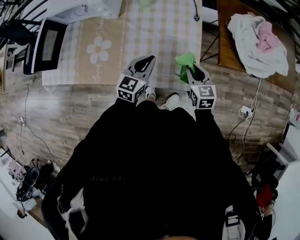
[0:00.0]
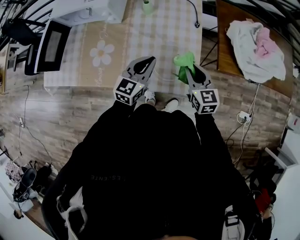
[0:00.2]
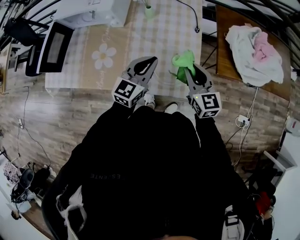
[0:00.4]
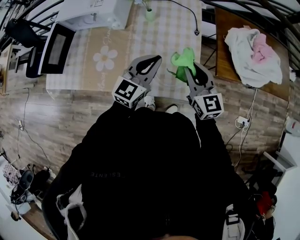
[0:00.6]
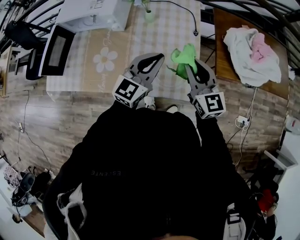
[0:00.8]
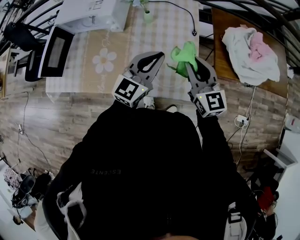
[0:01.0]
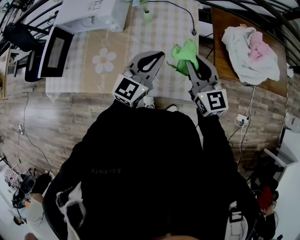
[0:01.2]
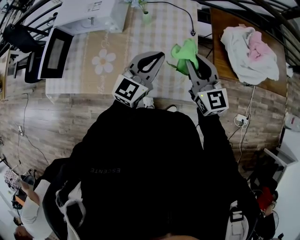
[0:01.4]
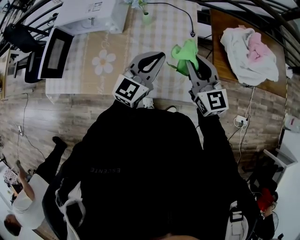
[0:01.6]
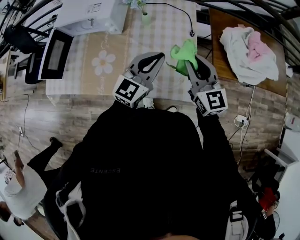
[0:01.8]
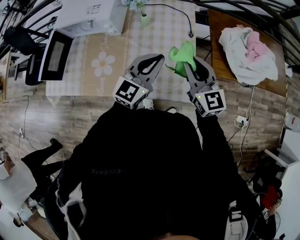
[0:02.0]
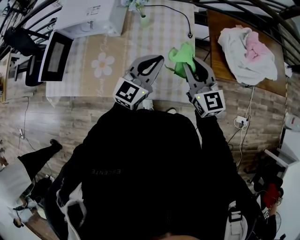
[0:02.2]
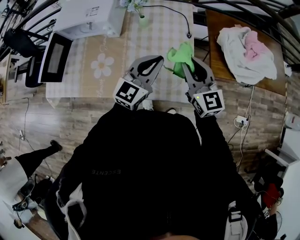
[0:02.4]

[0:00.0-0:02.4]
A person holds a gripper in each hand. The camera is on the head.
0:00.0 to 0:01.2: The grippers both shift upward by some 20 cm. The left gripper swivels roughly 20 degrees. The right gripper turns by some 30 degrees.
0:01.2 to 0:02.4: The grippers stay close to where they were, moving slightly.

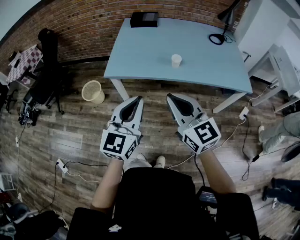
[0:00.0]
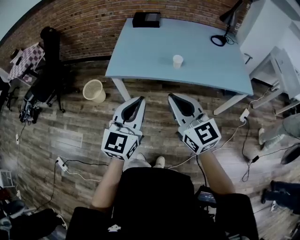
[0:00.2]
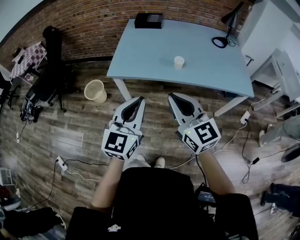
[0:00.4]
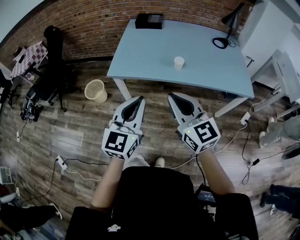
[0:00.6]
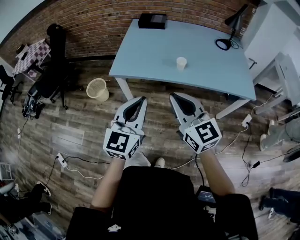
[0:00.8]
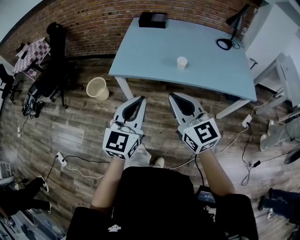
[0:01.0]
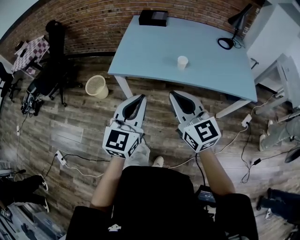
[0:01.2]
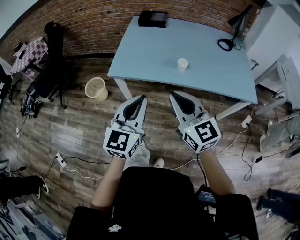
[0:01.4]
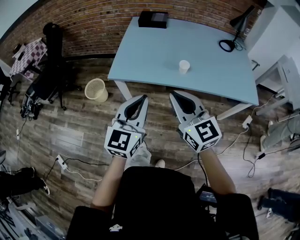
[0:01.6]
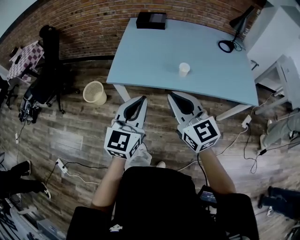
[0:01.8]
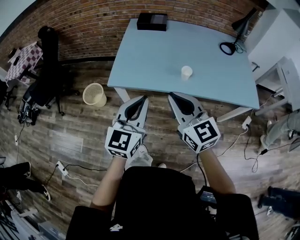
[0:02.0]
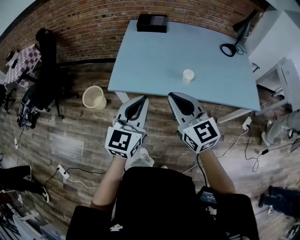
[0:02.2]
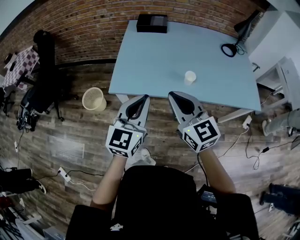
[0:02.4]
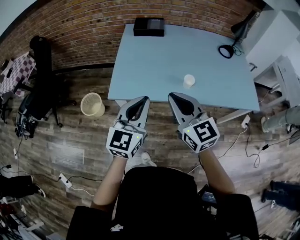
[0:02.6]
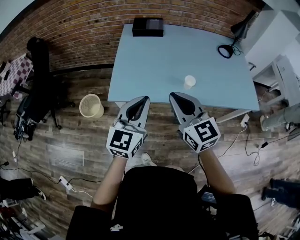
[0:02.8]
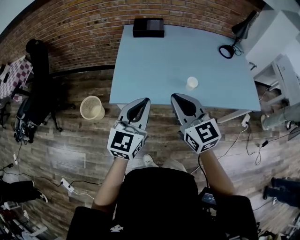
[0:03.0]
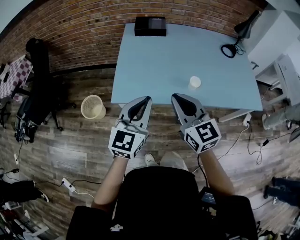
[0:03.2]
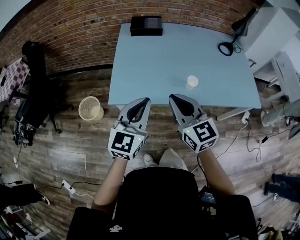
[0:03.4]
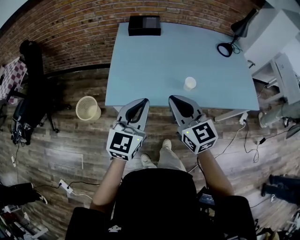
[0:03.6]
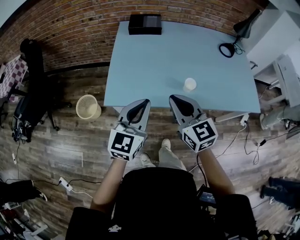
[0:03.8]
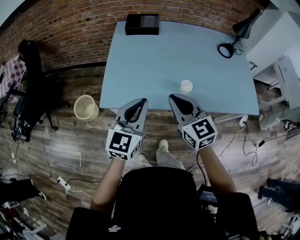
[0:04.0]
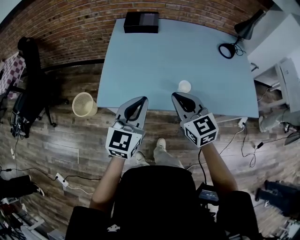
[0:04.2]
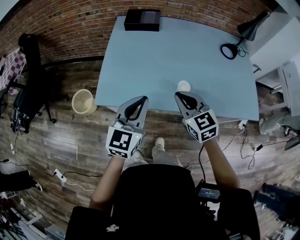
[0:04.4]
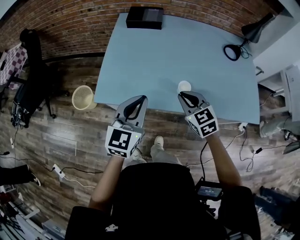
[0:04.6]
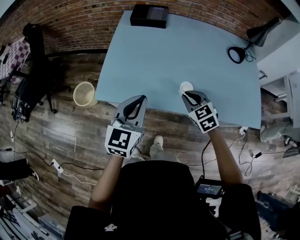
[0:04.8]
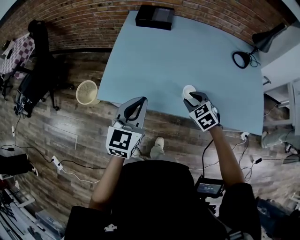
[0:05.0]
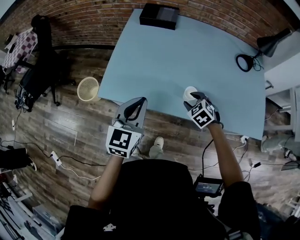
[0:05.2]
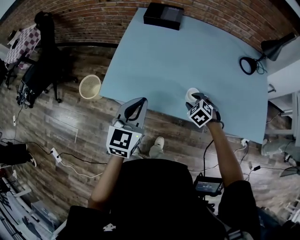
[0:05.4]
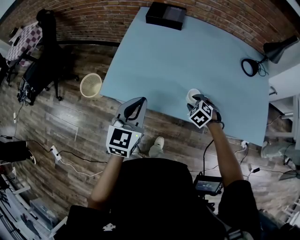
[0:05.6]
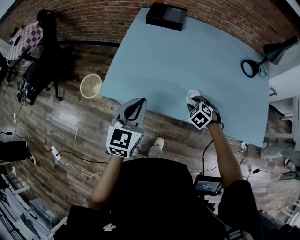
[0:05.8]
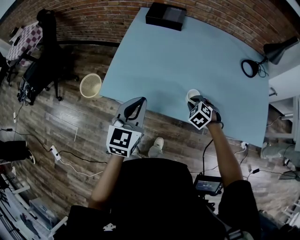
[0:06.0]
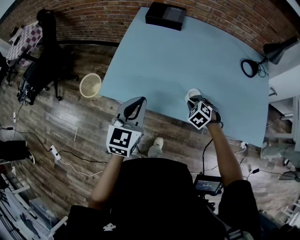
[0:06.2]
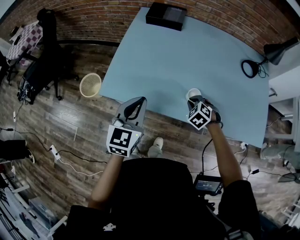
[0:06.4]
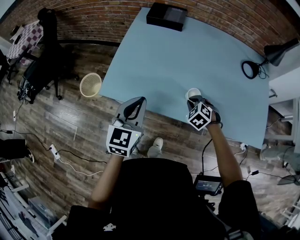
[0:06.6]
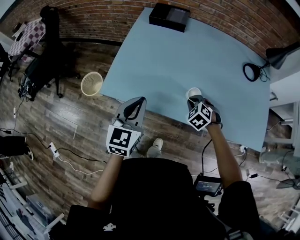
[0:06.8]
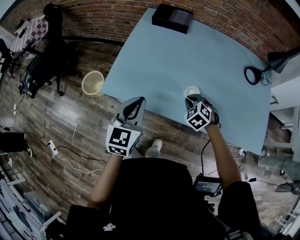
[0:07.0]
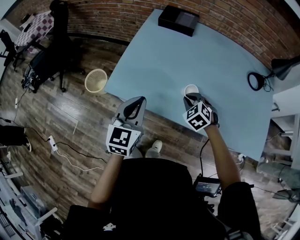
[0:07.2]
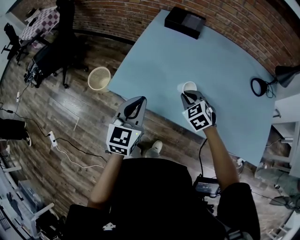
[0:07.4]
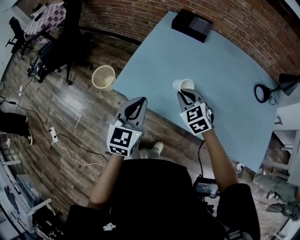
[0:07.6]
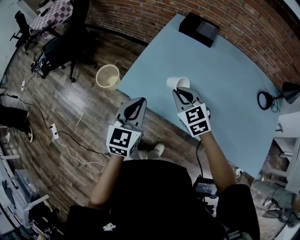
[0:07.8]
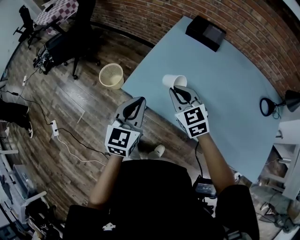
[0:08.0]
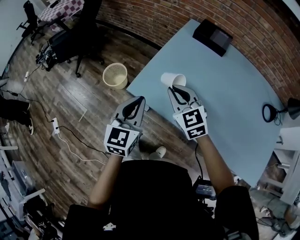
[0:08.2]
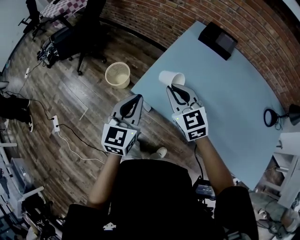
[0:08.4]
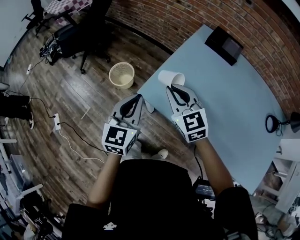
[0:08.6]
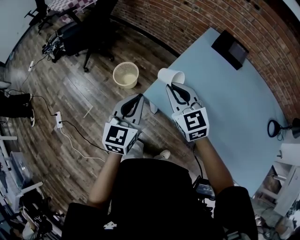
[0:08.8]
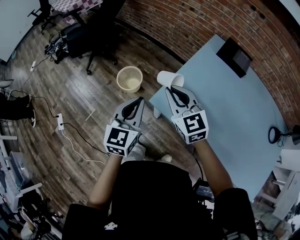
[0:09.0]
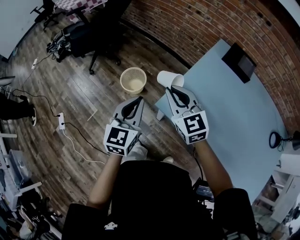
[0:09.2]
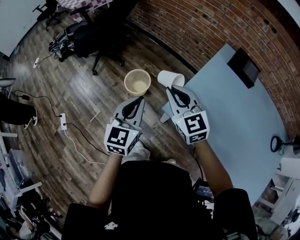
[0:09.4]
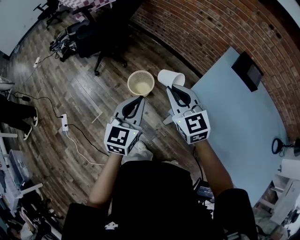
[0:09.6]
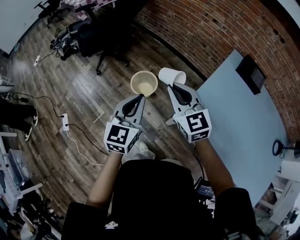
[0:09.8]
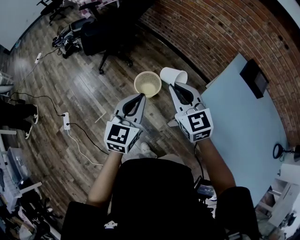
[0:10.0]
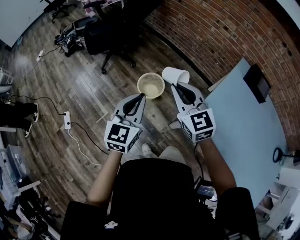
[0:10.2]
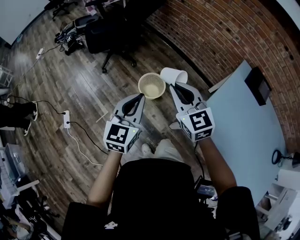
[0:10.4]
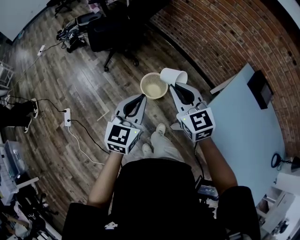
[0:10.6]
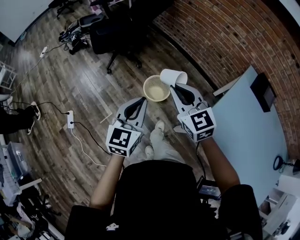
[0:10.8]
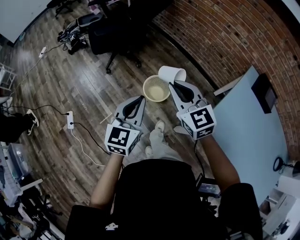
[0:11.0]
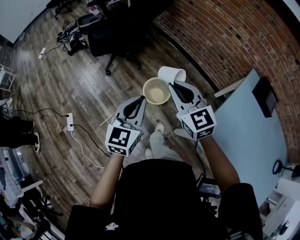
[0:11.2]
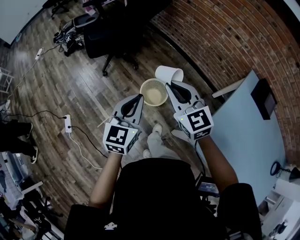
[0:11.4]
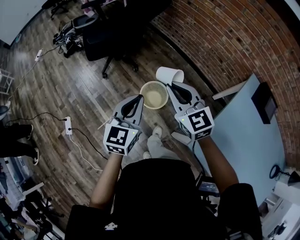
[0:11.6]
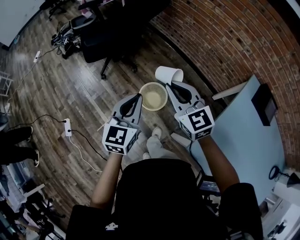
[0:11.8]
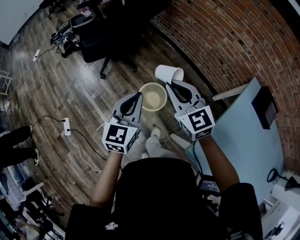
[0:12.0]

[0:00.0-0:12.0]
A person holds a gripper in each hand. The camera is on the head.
0:00.0 to 0:01.6: Both grippers travel together forward, about 5 cm.
0:01.6 to 0:03.0: Both grippers move forward and to the left, some 15 cm.
0:03.0 to 0:04.4: The right gripper travels to the right, forward and downward by roughly 15 cm. Meanwhile the left gripper shifts roughly 10 cm to the right and forward.
0:04.4 to 0:06.0: The right gripper goes some 20 cm downward, tilts its fingers about 40 degrees downward, and opens and closes again. Meanwhile the left gripper moves about 5 cm.
0:06.0 to 0:07.6: The right gripper is displaced to the left and upward by roughly 20 cm, and rotates roughly 30 degrees.
0:07.6 to 0:09.0: Both grippers move to the left and forward, roughly 25 cm. The right gripper turns by about 30 degrees.
0:09.0 to 0:10.4: The two grippers go roughly 25 cm to the left and forward.
0:10.4 to 0:12.0: The two grippers go approximately 20 cm forward.

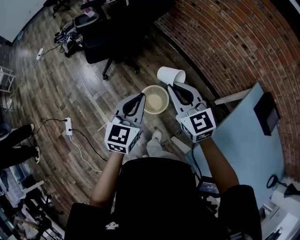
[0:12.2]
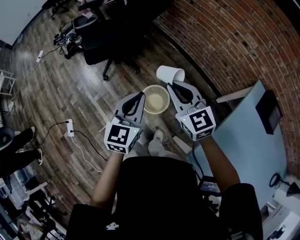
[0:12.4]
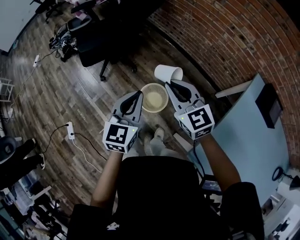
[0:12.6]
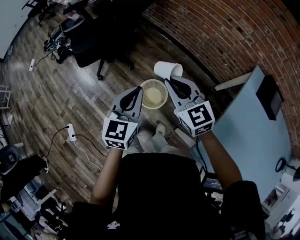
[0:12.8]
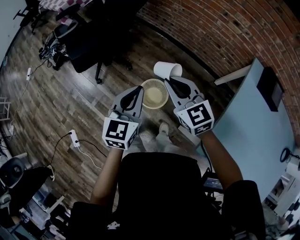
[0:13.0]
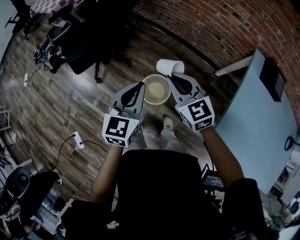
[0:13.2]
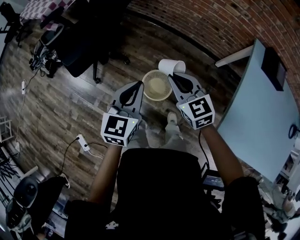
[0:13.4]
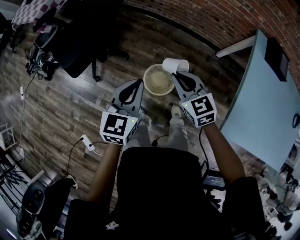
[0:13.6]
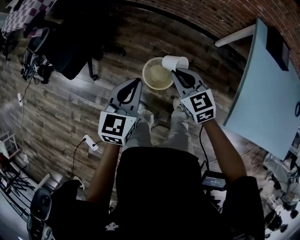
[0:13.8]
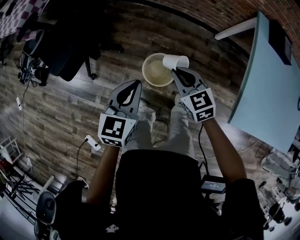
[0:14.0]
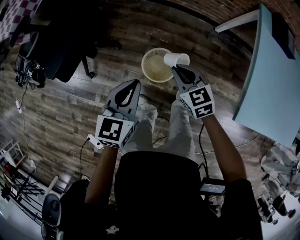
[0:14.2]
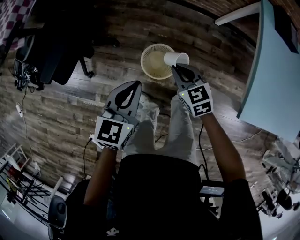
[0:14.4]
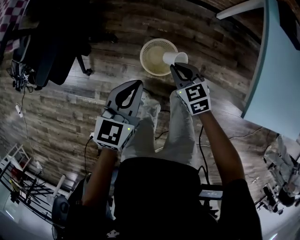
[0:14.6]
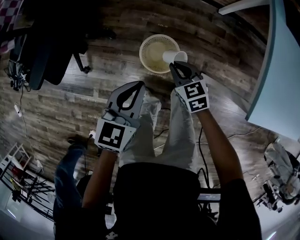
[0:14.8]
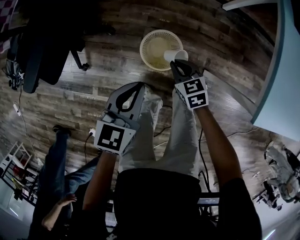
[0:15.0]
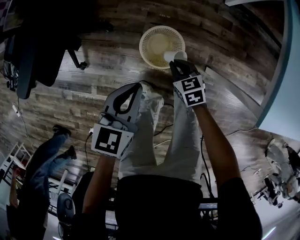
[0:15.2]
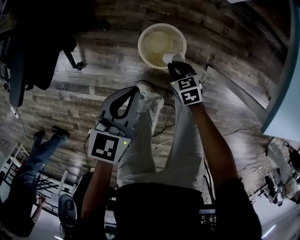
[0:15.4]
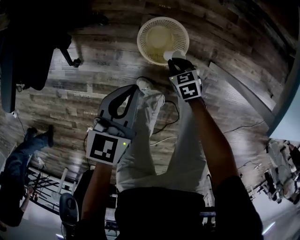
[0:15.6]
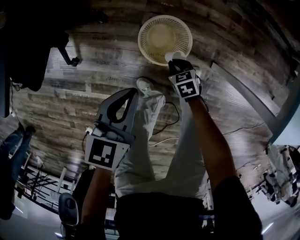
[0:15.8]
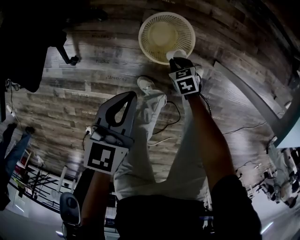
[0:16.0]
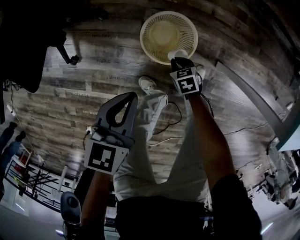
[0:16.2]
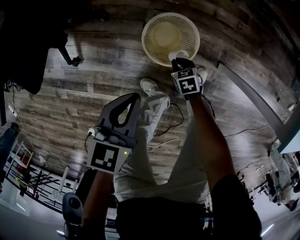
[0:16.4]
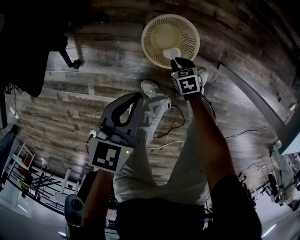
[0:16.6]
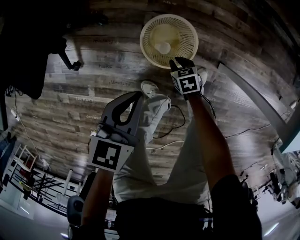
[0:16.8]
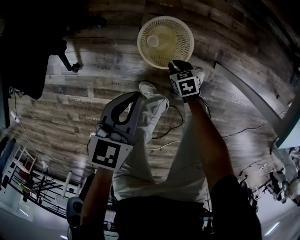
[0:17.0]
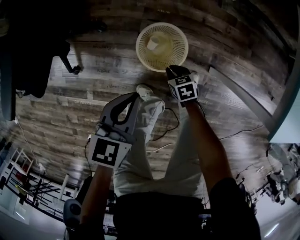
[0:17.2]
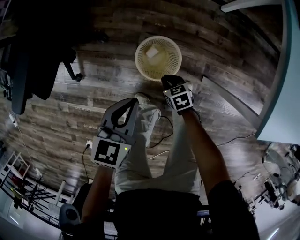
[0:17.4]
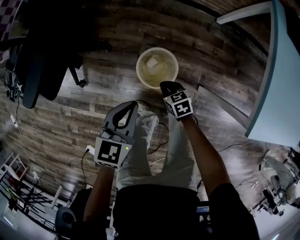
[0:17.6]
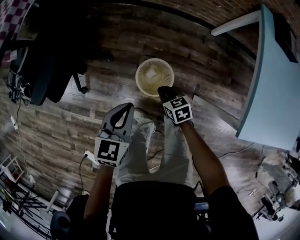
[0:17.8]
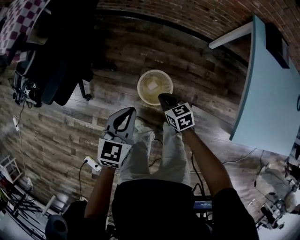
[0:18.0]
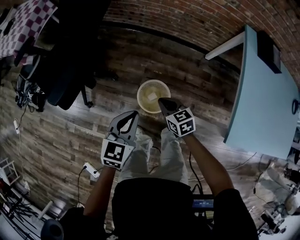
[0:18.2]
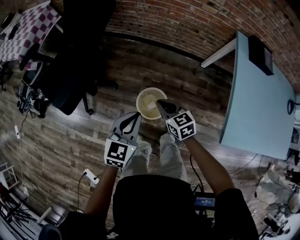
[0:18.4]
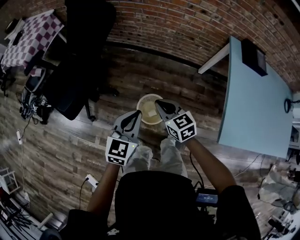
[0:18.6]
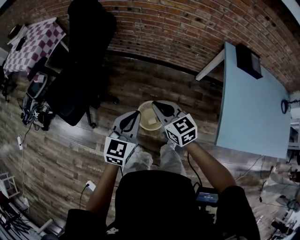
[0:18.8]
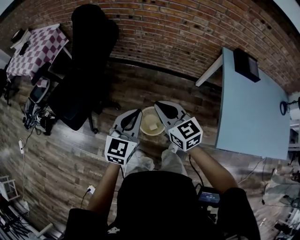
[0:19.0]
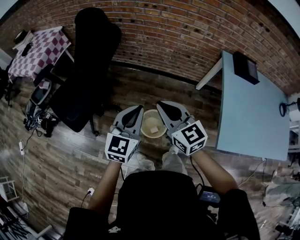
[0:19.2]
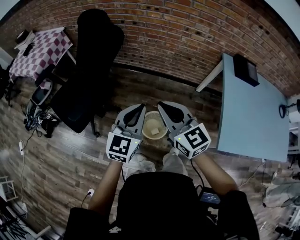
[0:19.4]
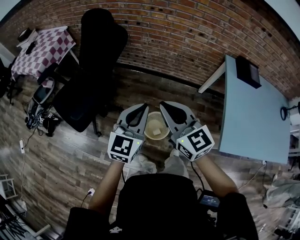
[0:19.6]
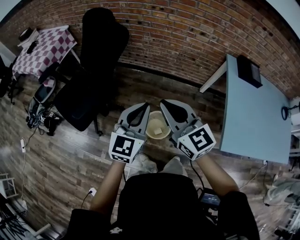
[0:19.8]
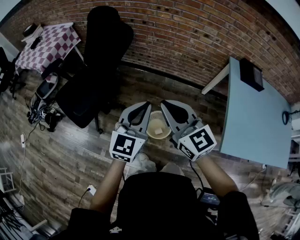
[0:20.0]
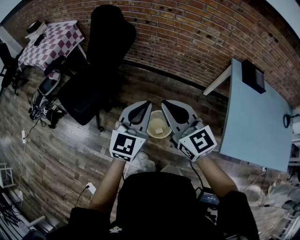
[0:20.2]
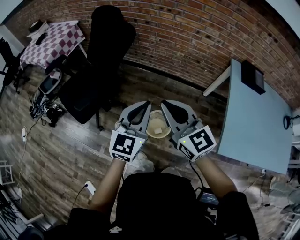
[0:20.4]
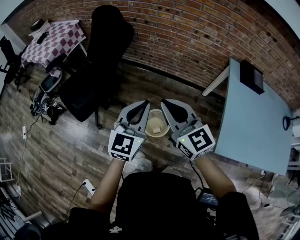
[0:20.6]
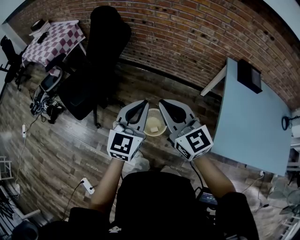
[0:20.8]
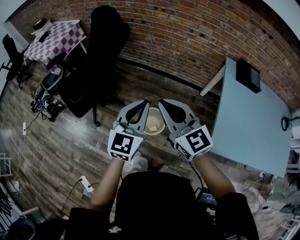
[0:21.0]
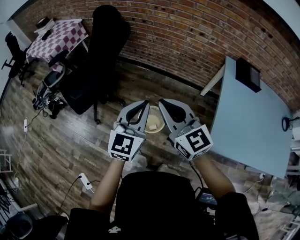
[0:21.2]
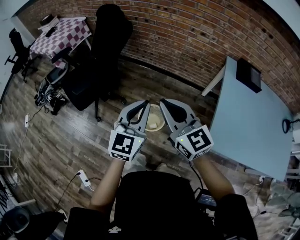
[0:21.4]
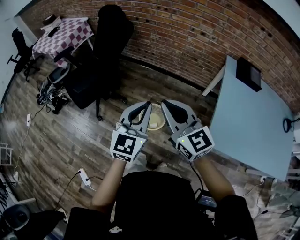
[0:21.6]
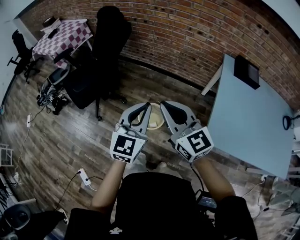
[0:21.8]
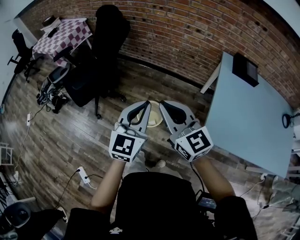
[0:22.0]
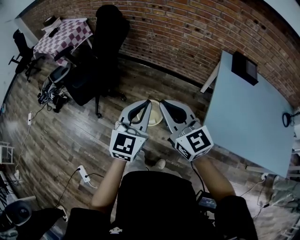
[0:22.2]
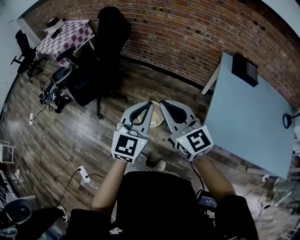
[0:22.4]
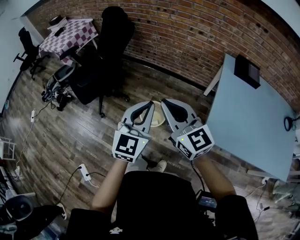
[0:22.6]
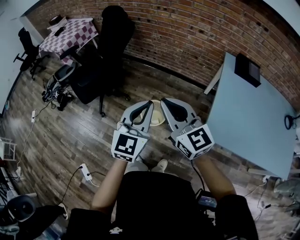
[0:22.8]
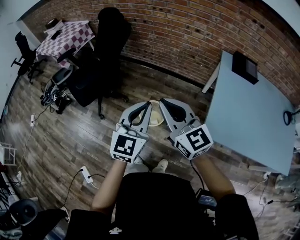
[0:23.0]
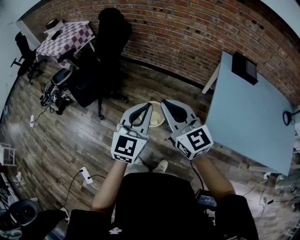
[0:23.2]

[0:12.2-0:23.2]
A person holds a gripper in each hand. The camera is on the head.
0:12.2 to 0:13.8: The left gripper changes place by some 15 cm, and rotates about 30 degrees, while the right gripper goes roughly 15 cm downward, and changes its angle by roughly 30 degrees.
0:13.8 to 0:15.4: The right gripper goes some 40 cm downward, and swivels some 30 degrees; the left gripper is displaced downward by roughly 25 cm.
0:15.4 to 0:17.0: The right gripper shifts approximately 15 cm downward; the left gripper is displaced downward by roughly 10 cm.
0:17.0 to 0:18.4: The left gripper heads upward, covering approximately 30 cm, and turns by approximately 20 degrees. Meanwhile the right gripper moves upward, some 50 cm, and rotates approximately 30 degrees.
0:18.4 to 0:20.0: The right gripper travels upward by roughly 30 cm, and points its fingers some 30 degrees further upward; the left gripper heads upward, covering some 20 cm, and swivels about 20 degrees.
0:20.0 to 0:21.6: The two grippers go about 20 cm backward and to the right.
0:21.6 to 0:23.2: Both grippers move backward, roughly 5 cm.
